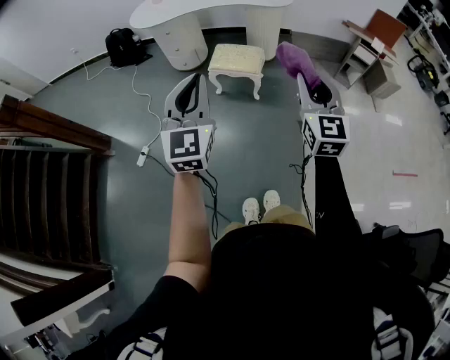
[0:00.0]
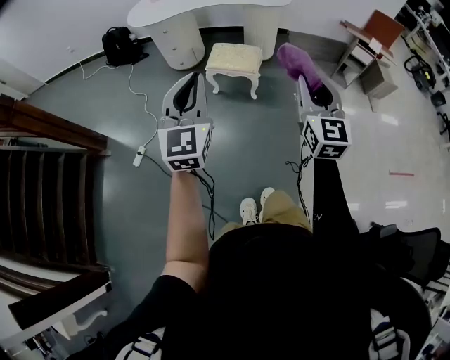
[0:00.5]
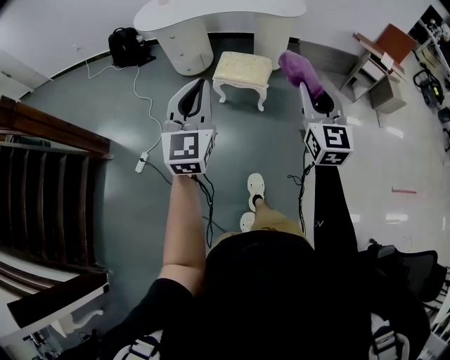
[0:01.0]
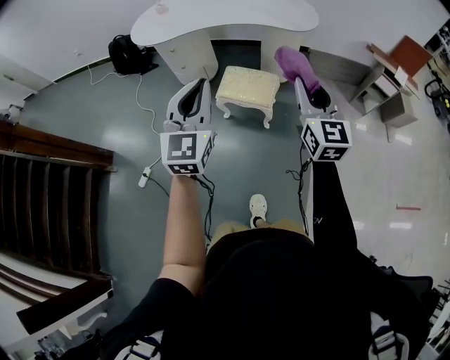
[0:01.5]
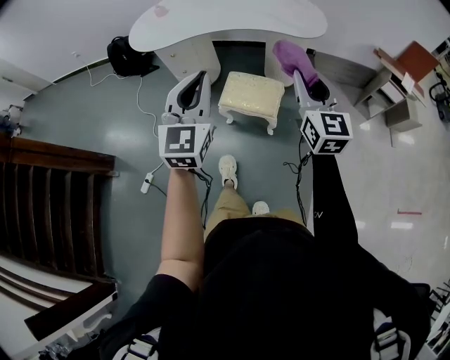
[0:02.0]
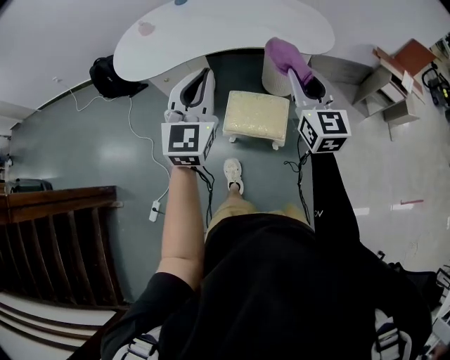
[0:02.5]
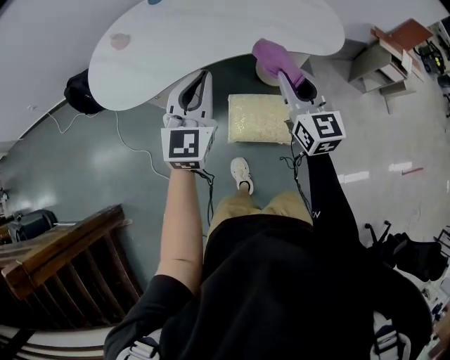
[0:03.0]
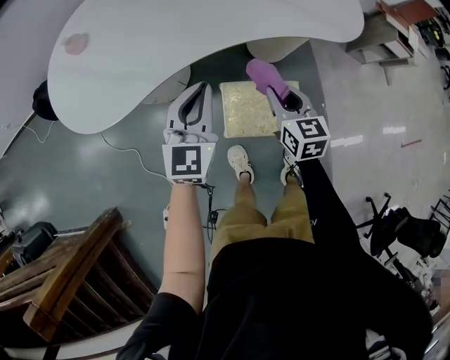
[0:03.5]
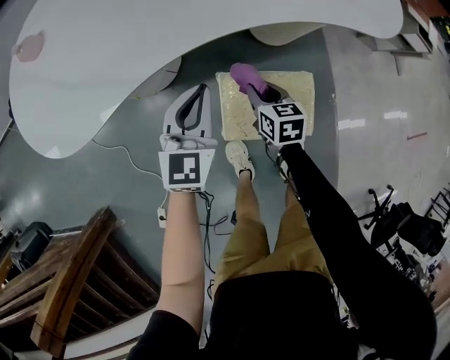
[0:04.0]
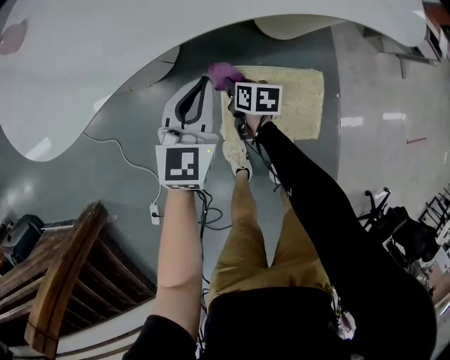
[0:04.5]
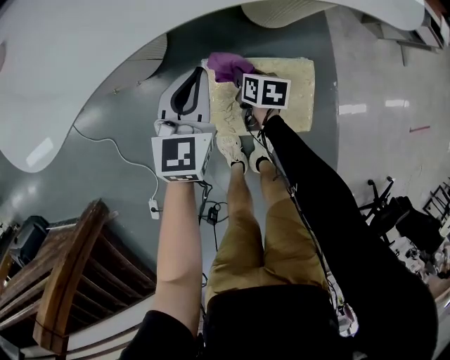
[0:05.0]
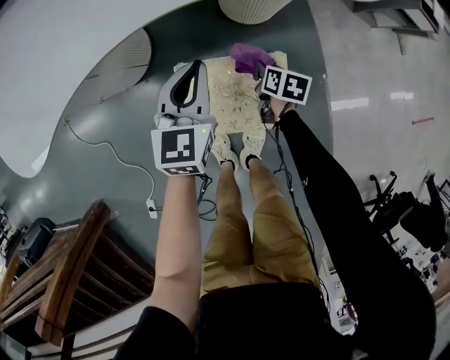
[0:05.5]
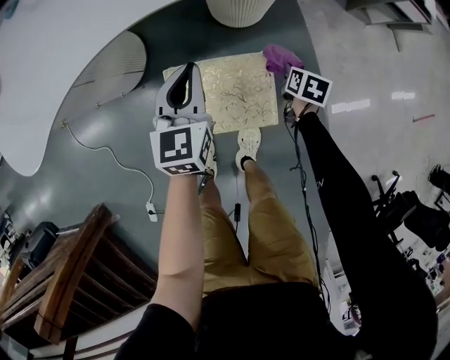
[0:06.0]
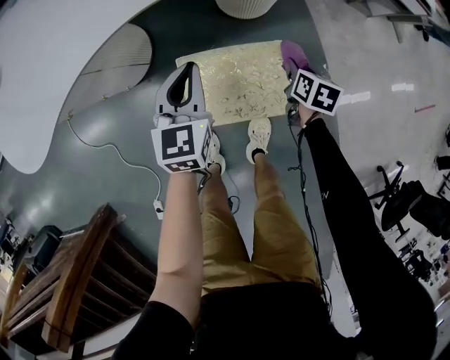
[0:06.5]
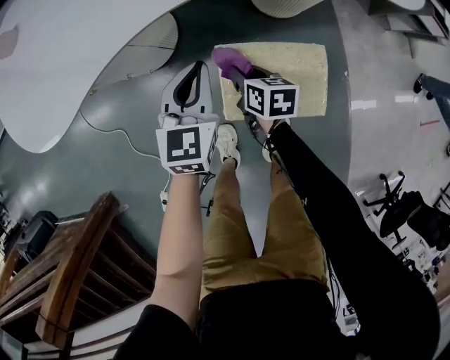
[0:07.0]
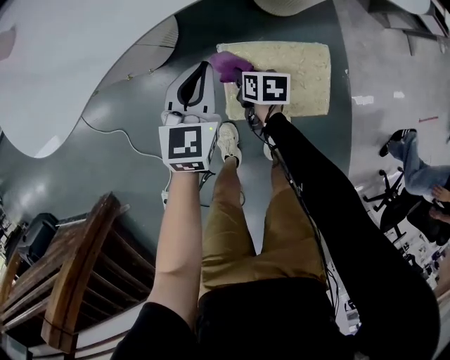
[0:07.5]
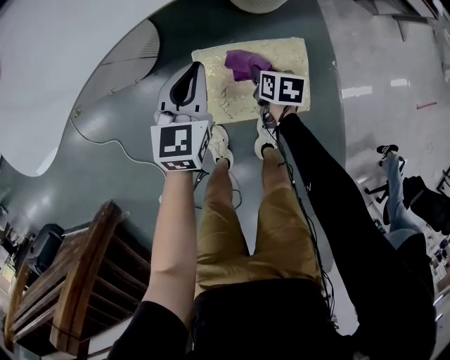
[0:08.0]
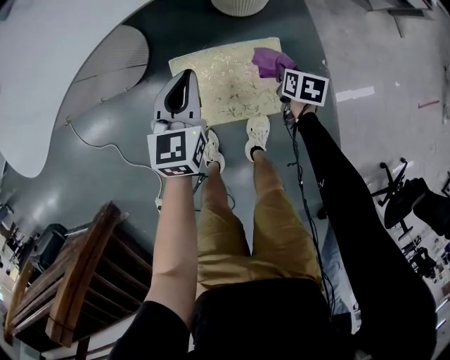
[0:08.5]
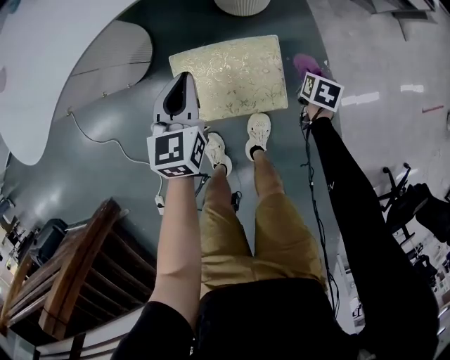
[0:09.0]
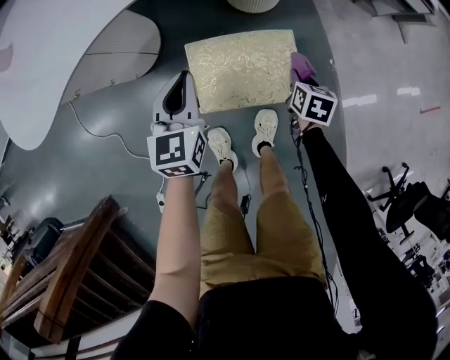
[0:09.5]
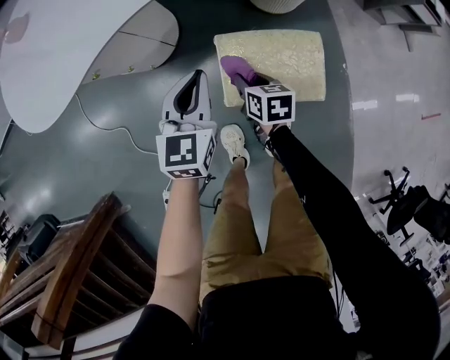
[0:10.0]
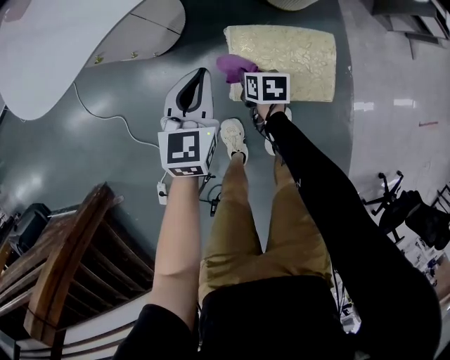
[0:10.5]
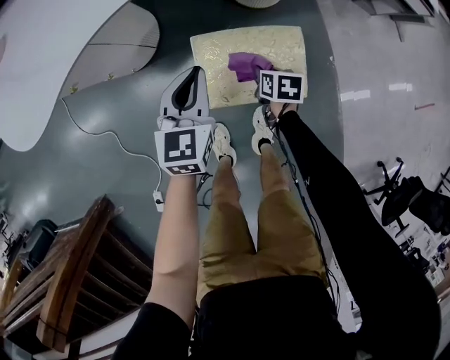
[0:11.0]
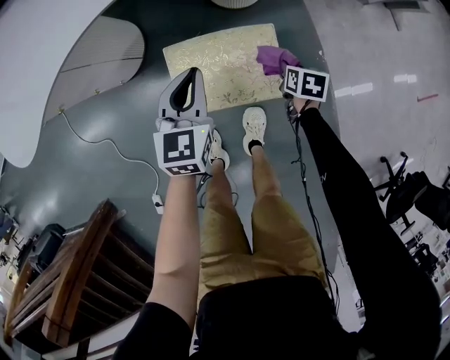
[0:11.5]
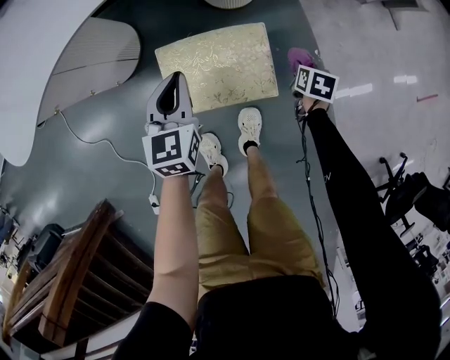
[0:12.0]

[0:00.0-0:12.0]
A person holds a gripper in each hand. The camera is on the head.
0:00.0 to 0:02.0: Both grippers travel together forward, roughly 35 cm.
0:02.0 to 0:04.0: The two grippers travel together, forward and to the left, some 40 cm. Both grippers travel together downward, some 50 cm. The right gripper tips its fingers downward by some 50 degrees. The left gripper turns by approximately 30 degrees.
0:04.0 to 0:06.0: The right gripper is displaced to the right by roughly 30 cm, and swivels approximately 30 degrees. Meanwhile the left gripper travels to the right by approximately 20 cm.
0:06.0 to 0:08.0: The left gripper goes some 10 cm to the left; the right gripper travels to the left by about 20 cm.
0:08.0 to 0:10.0: The left gripper moves backward and to the left, about 10 cm. The right gripper goes some 10 cm backward and upward, and reaches roughly 25 cm to the right, then returns.
0:10.0 to 0:12.0: The right gripper goes approximately 40 cm to the right, and changes its angle by approximately 30 degrees; the left gripper travels to the right by roughly 15 cm.

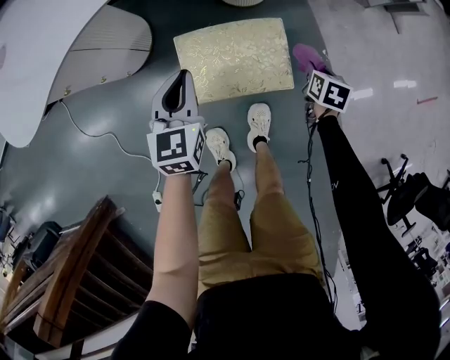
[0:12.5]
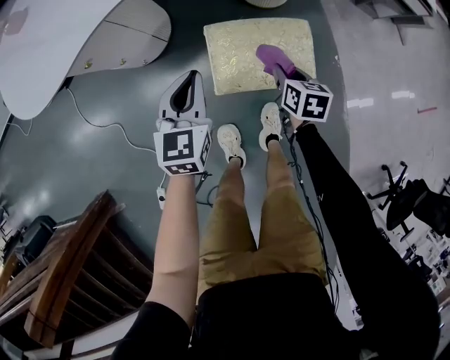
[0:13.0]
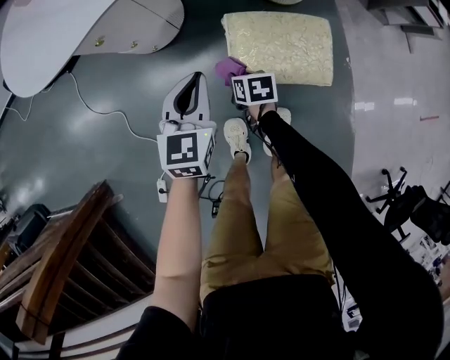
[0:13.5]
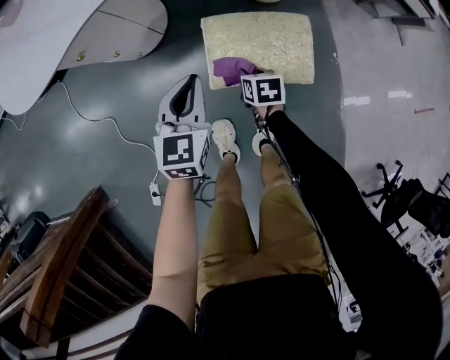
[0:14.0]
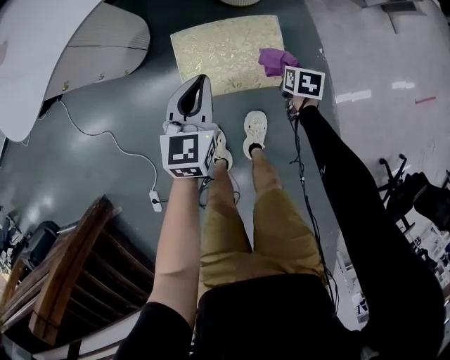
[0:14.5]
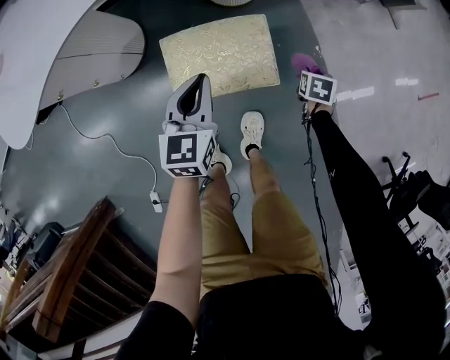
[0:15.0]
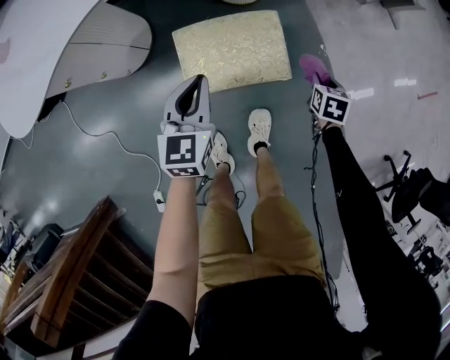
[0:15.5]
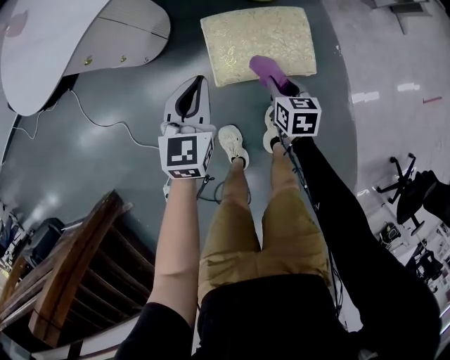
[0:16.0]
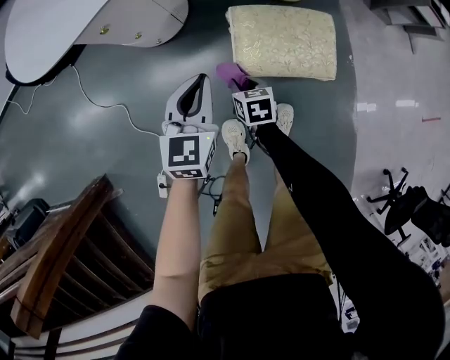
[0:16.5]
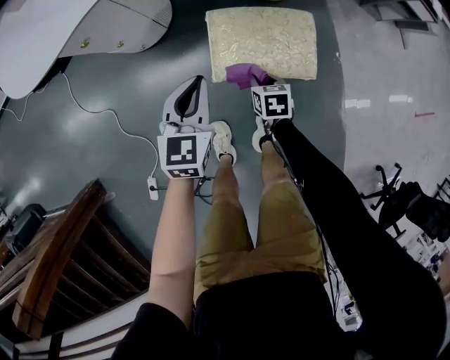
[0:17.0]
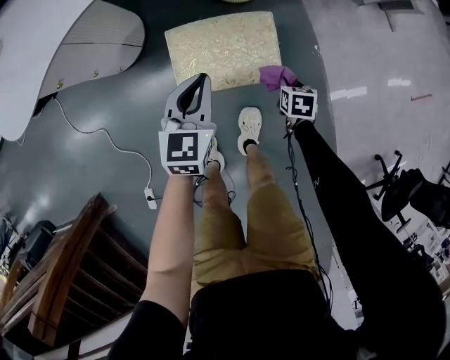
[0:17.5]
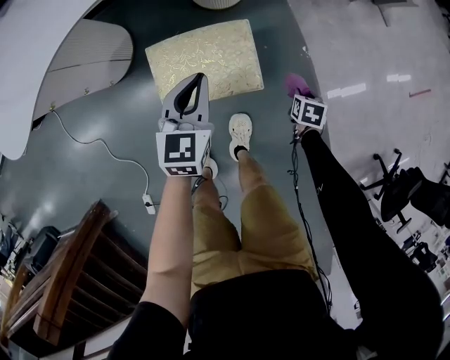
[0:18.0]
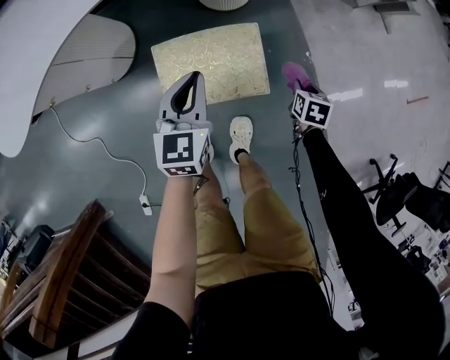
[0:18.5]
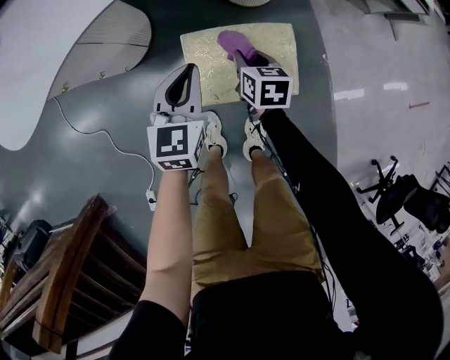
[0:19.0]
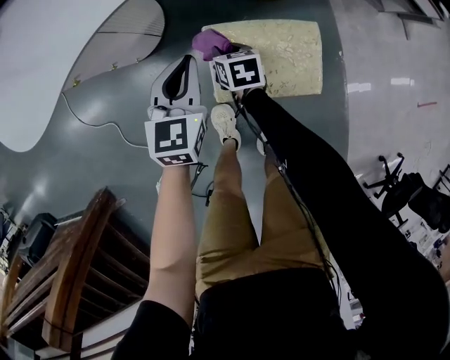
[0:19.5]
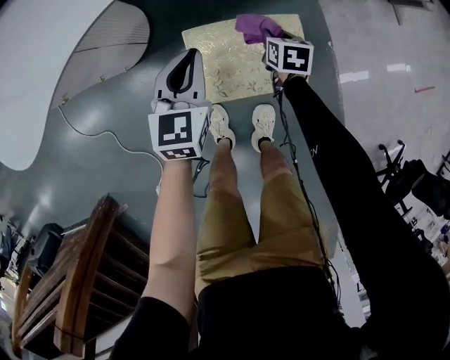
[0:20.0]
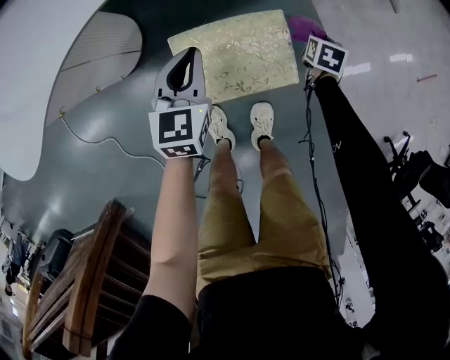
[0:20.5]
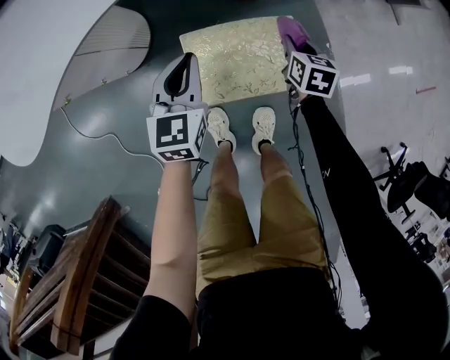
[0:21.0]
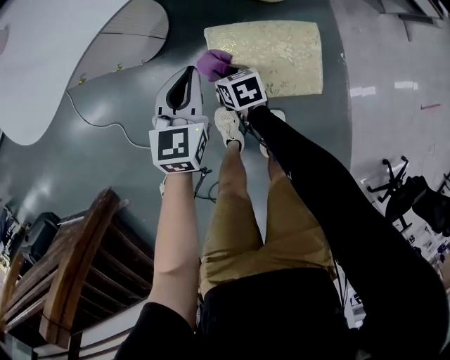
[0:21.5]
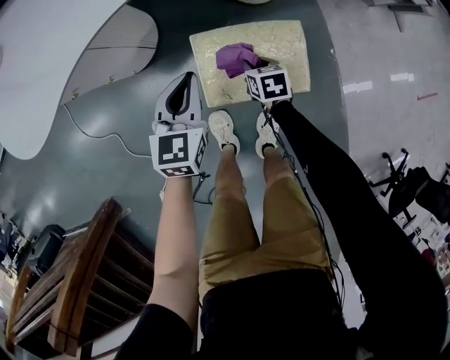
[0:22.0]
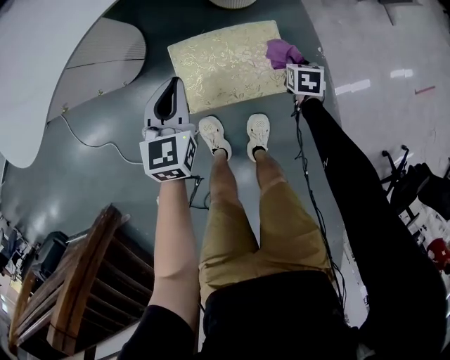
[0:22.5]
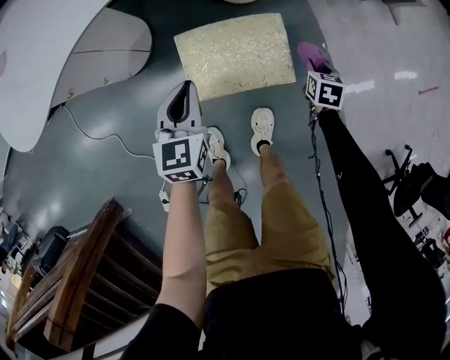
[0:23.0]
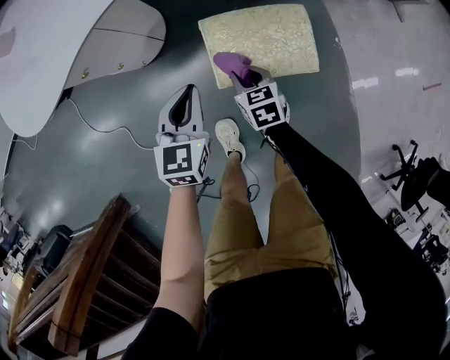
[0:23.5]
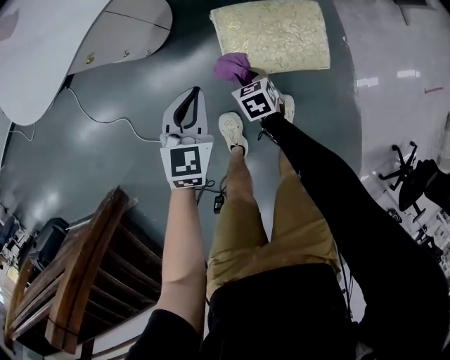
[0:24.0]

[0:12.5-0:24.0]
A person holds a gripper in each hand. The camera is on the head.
0:14.5 to 0:16.5: The left gripper ends up roughly 20 cm from where it was. The right gripper goes upward and returns, roughly 5 cm each way, and rotates some 20 degrees.
0:16.5 to 0:18.5: The left gripper moves about 25 cm. The right gripper changes place by some 40 cm, and turns by about 30 degrees.
0:18.5 to 0:20.0: The left gripper shifts approximately 15 cm to the left and forward. The right gripper travels to the left and forward by some 25 cm.
0:20.0 to 0:22.0: The left gripper ends up about 5 cm from where it was.
0:22.0 to 0:24.0: The left gripper shifts roughly 15 cm backward and to the left, while the right gripper travels backward by about 10 cm, and goes to the right and returns, roughly 25 cm each way.

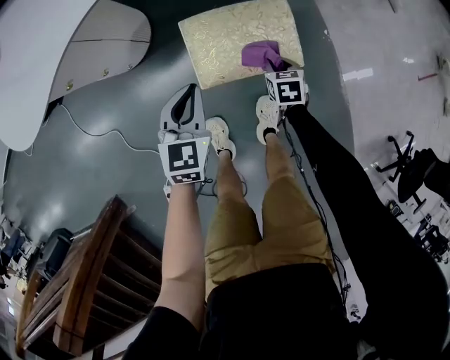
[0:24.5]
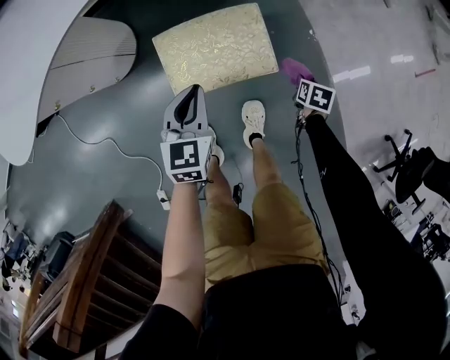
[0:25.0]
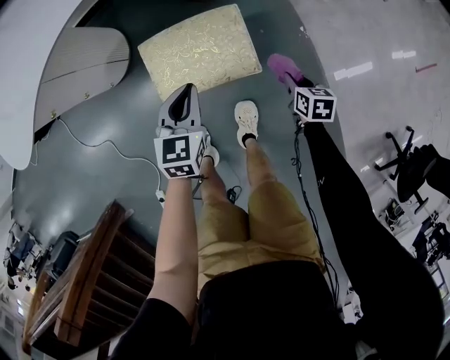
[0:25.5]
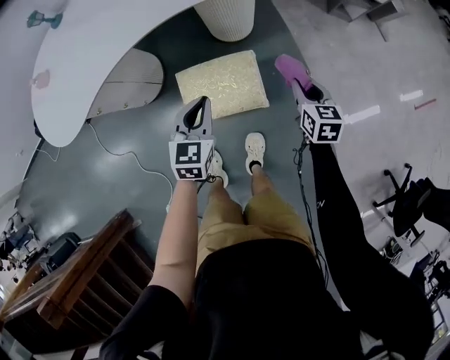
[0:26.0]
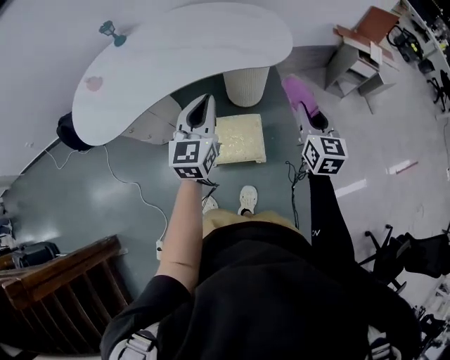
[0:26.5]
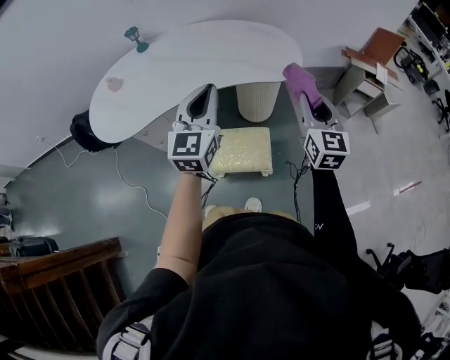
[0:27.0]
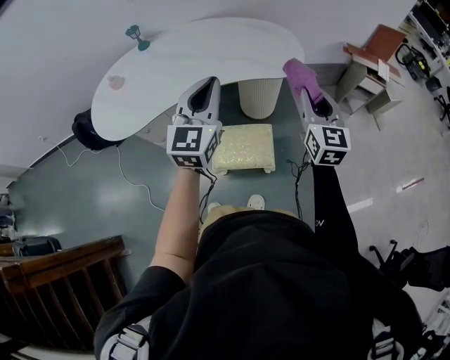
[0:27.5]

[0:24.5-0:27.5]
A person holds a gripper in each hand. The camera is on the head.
0:24.5 to 0:26.0: The right gripper shifts some 30 cm upward and to the right, and swivels approximately 20 degrees. The left gripper moves to the right, upward and forward, roughly 20 cm.
0:26.0 to 0:27.5: Both grippers move upward, approximately 35 cm. The left gripper points its fingers about 30 degrees further upward. Meanwhile the right gripper points its fingers roughly 30 degrees further upward.
